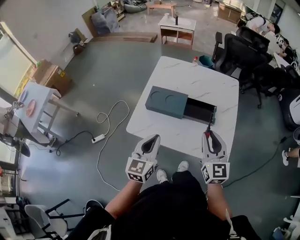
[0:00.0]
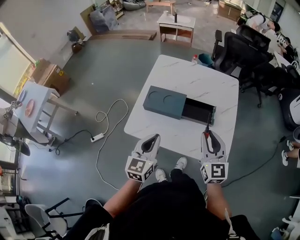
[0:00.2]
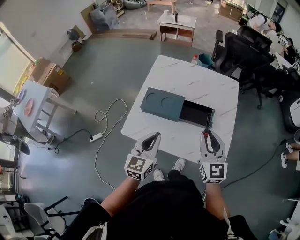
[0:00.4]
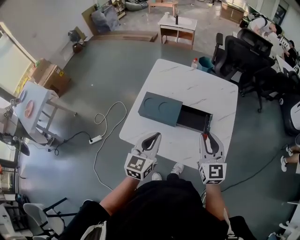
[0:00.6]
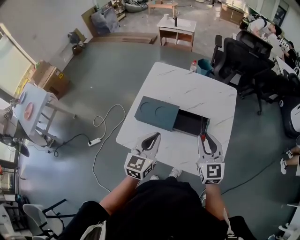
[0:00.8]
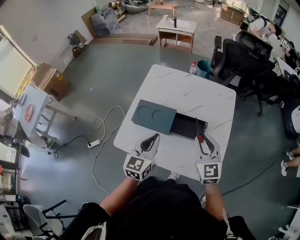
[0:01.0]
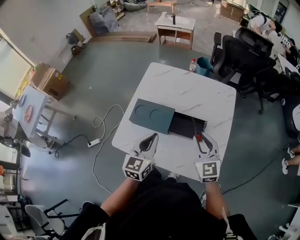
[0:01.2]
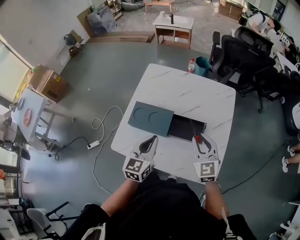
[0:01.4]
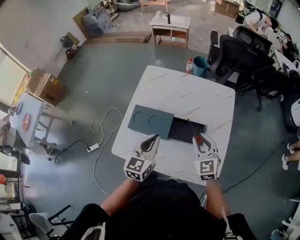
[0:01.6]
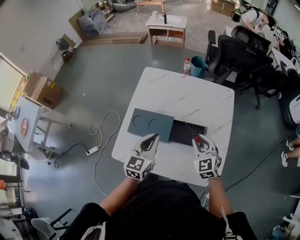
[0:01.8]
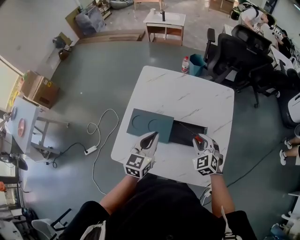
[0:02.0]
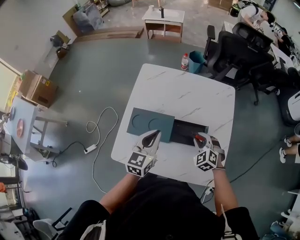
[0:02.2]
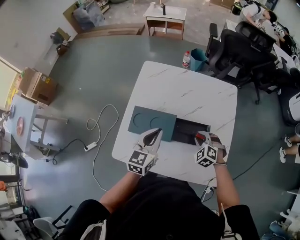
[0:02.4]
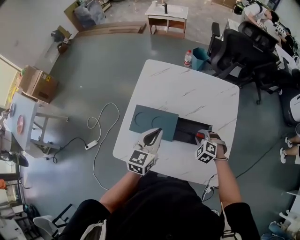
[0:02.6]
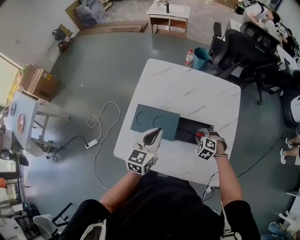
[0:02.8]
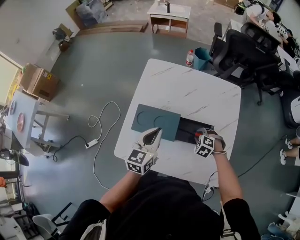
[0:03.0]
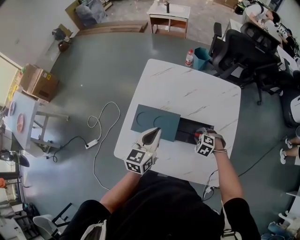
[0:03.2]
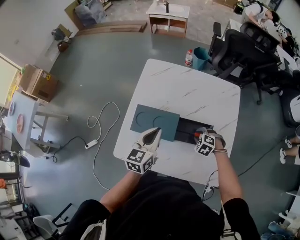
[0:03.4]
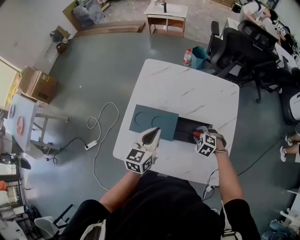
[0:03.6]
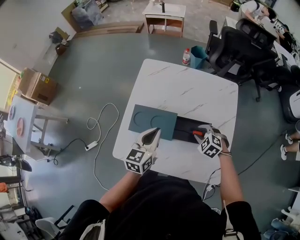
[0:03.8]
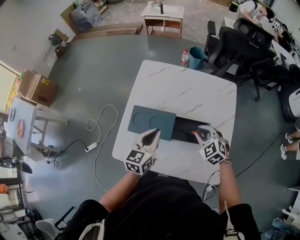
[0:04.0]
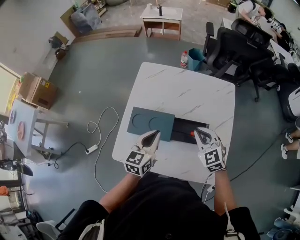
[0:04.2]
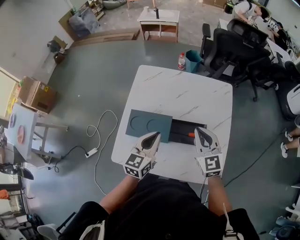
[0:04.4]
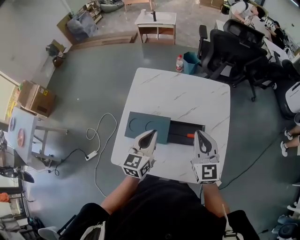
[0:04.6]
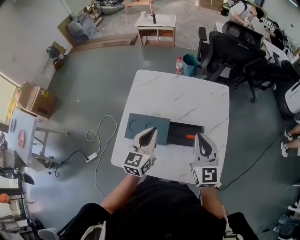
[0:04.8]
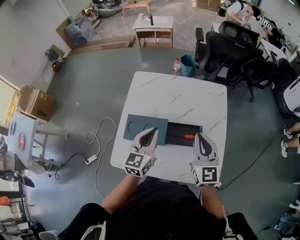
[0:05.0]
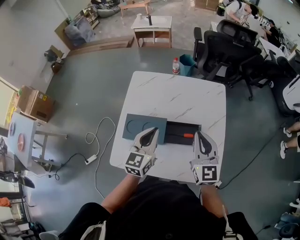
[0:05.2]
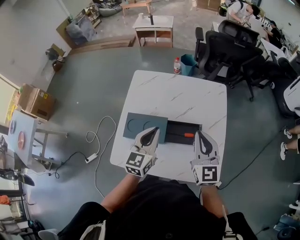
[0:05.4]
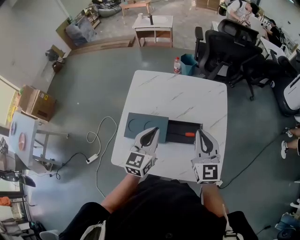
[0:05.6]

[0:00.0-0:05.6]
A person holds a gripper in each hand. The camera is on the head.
0:00.0 to 0:01.4: The right gripper goes roughly 15 cm forward and downward. The left gripper moves forward and to the right, roughly 15 cm.
0:01.4 to 0:02.8: The right gripper is displaced downward by some 20 cm, and points its fingers roughly 50 degrees further downward. Meanwhile the left gripper goes approximately 10 cm forward.
0:02.8 to 0:04.2: The right gripper travels upward by roughly 15 cm, and tips its fingers upward by approximately 40 degrees.
0:04.2 to 0:05.6: The left gripper is displaced upward by approximately 5 cm; the right gripper heads upward, covering roughly 10 cm, and swivels about 40 degrees.

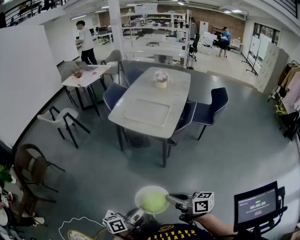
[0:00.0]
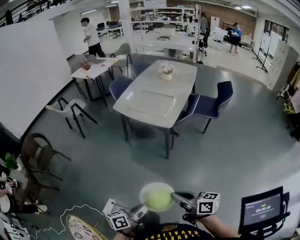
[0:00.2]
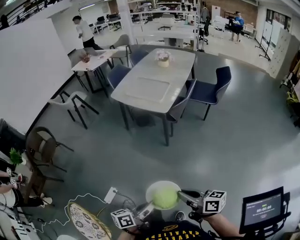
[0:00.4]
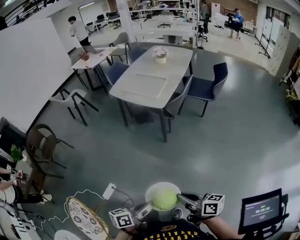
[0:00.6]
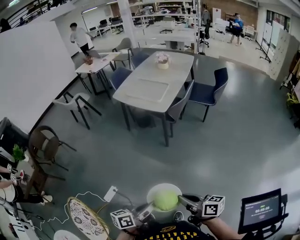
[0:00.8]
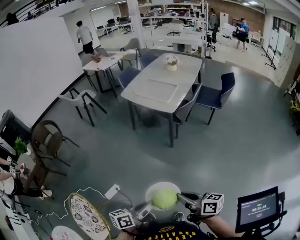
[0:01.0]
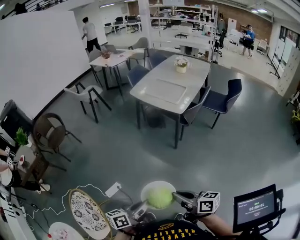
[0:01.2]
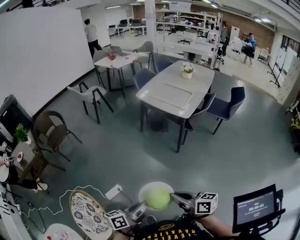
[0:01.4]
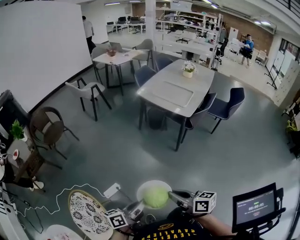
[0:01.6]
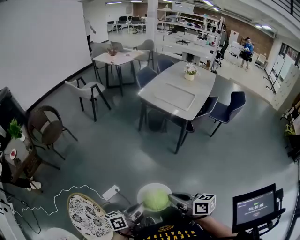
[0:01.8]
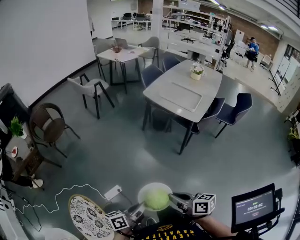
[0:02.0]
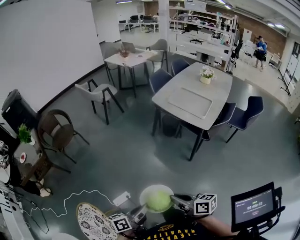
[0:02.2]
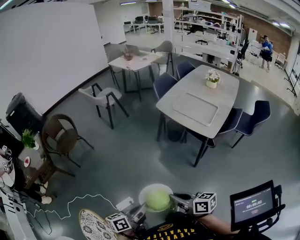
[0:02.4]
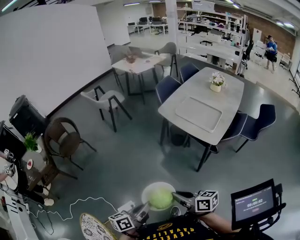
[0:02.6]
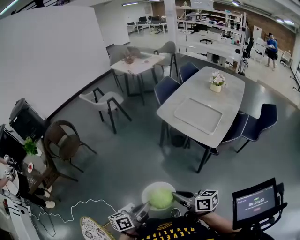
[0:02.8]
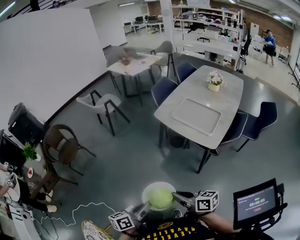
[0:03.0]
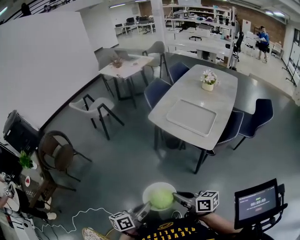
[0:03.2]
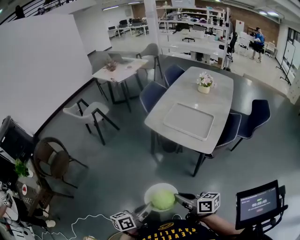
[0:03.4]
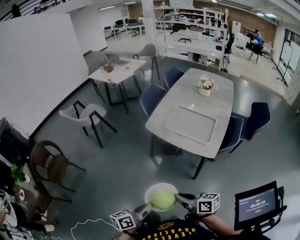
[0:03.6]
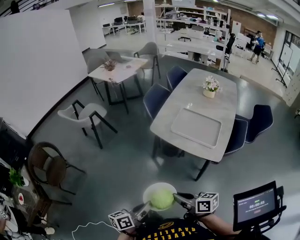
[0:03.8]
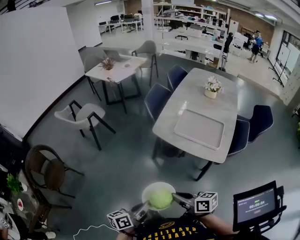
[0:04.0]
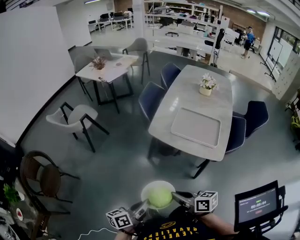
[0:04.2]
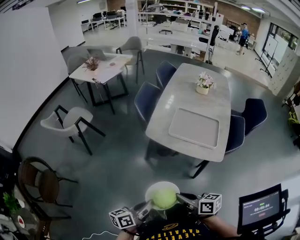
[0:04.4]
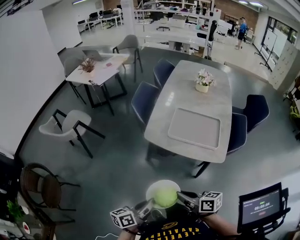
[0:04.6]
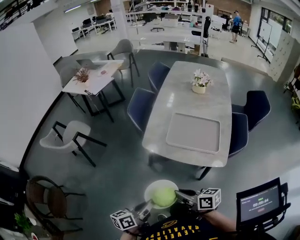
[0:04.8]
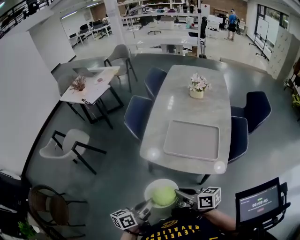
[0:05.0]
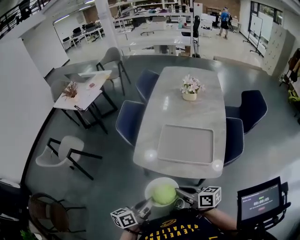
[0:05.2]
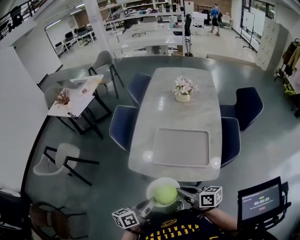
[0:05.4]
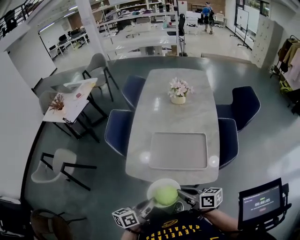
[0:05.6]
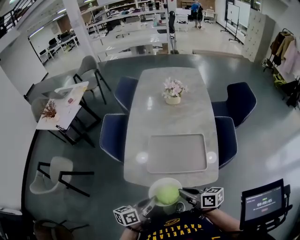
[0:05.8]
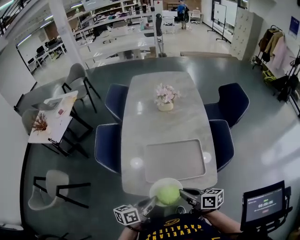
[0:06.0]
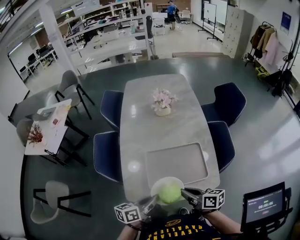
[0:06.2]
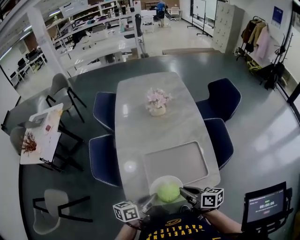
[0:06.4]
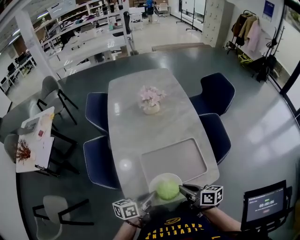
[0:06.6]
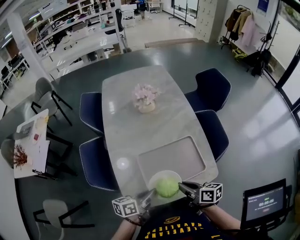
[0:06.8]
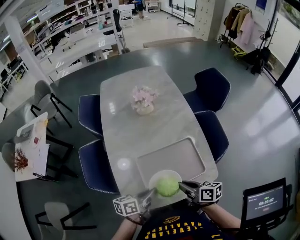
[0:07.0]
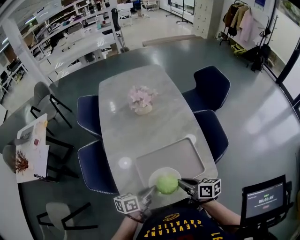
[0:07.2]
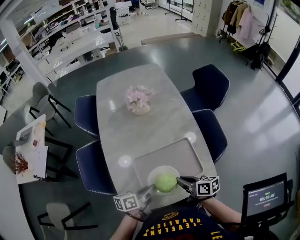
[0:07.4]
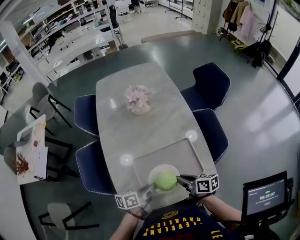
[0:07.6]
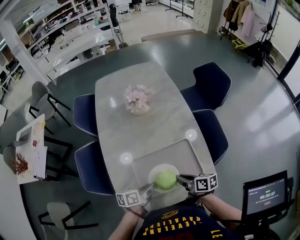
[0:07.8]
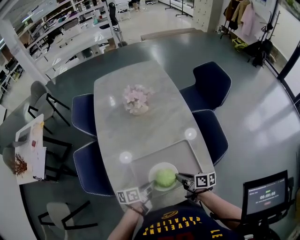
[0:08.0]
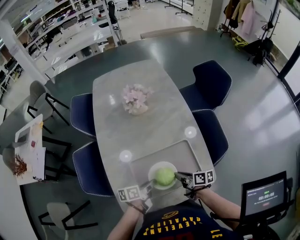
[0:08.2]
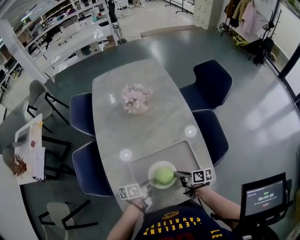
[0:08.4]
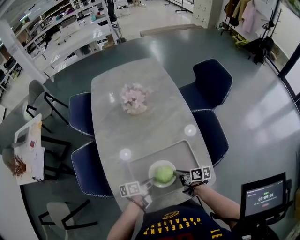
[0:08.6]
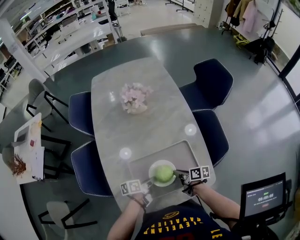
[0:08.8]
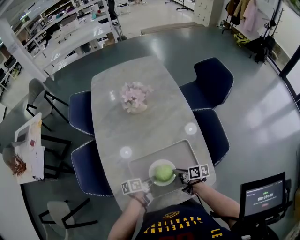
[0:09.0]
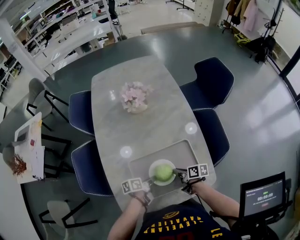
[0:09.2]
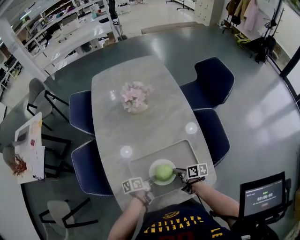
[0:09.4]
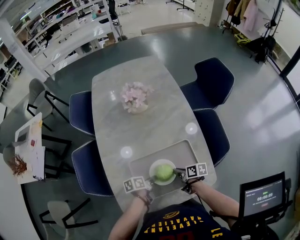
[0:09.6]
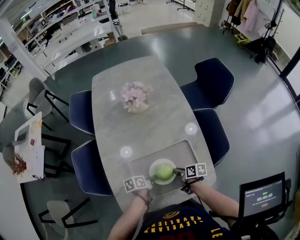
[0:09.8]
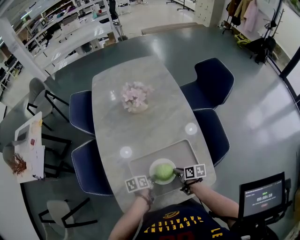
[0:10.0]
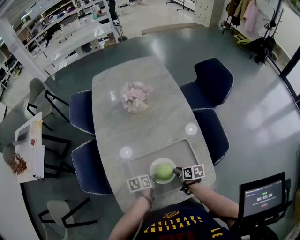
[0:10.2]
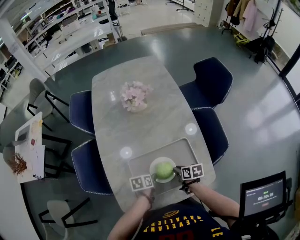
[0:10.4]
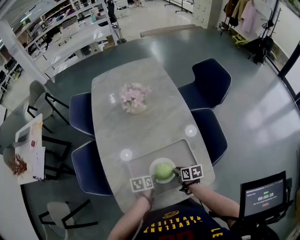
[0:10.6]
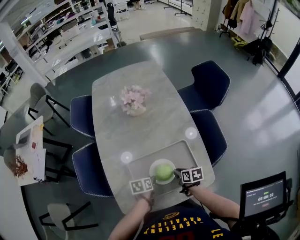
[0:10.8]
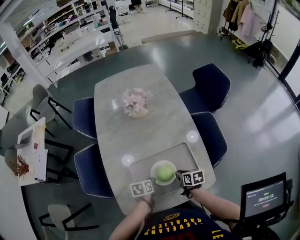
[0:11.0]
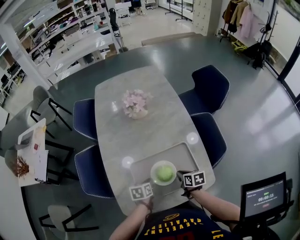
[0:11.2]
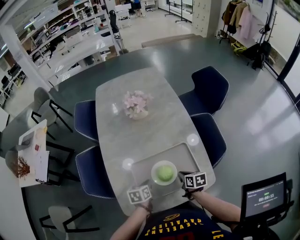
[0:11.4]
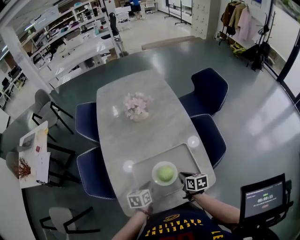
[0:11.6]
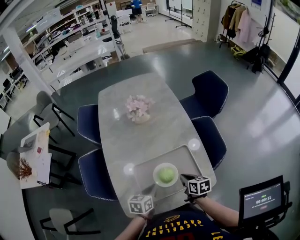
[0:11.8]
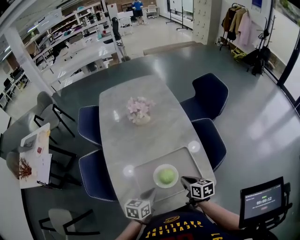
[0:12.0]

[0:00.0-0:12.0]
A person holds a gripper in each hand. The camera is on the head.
0:00.0 to 0:01.6: The two grippers go roughly 20 cm backward and to the left.
0:01.6 to 0:03.0: Both grippers travel together forward, approximately 35 cm.
0:03.0 to 0:04.4: The right gripper goes some 25 cm forward and to the left, and changes its angle by roughly 20 degrees; the left gripper moves forward, some 30 cm, and turns by roughly 20 degrees.
0:04.4 to 0:06.0: The two grippers go approximately 40 cm forward. The right gripper swivels roughly 30 degrees, while the left gripper rotates about 30 degrees.
0:06.0 to 0:07.6: Both grippers travel together forward, roughly 15 cm.
0:07.6 to 0:09.0: Both grippers travel together downward and forward, some 15 cm. The left gripper turns by roughly 20 degrees.
0:09.0 to 0:10.4: The left gripper changes its angle by about 30 degrees. Meanwhile the right gripper swivels approximately 20 degrees.
0:10.4 to 0:12.0: Both grippers move upward and backward, about 15 cm. The left gripper swivels approximately 30 degrees, and closes up.

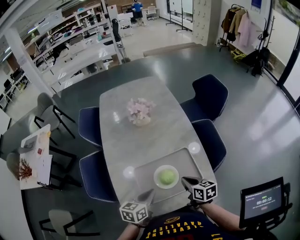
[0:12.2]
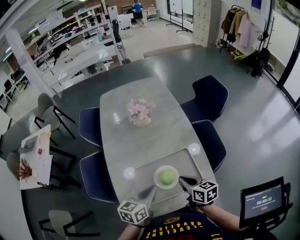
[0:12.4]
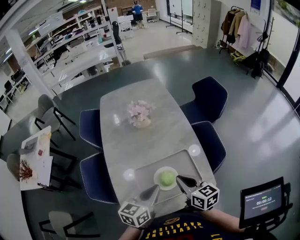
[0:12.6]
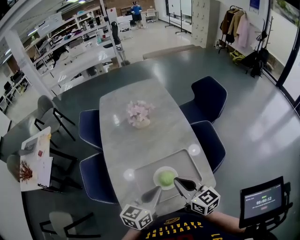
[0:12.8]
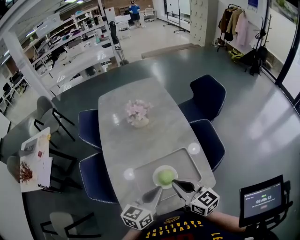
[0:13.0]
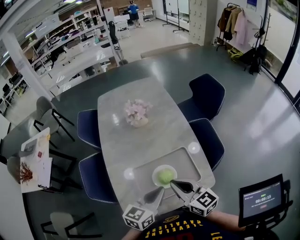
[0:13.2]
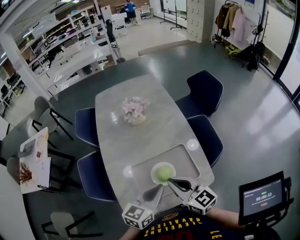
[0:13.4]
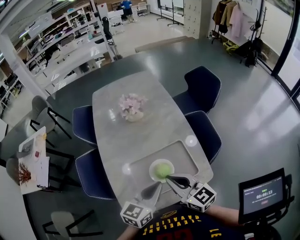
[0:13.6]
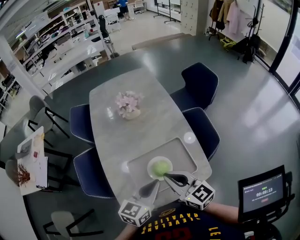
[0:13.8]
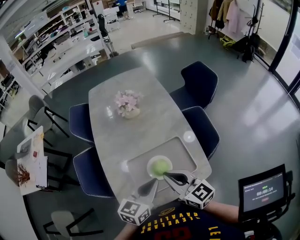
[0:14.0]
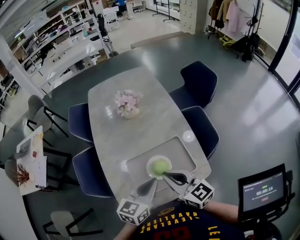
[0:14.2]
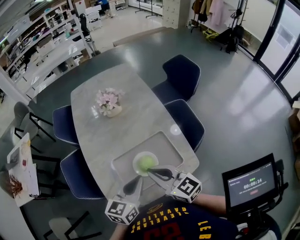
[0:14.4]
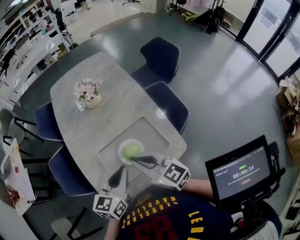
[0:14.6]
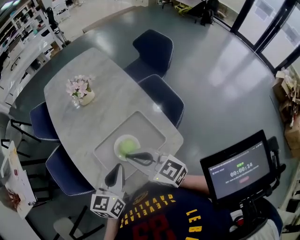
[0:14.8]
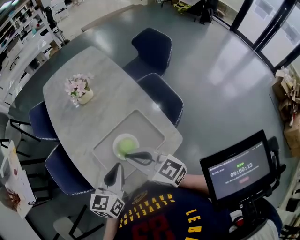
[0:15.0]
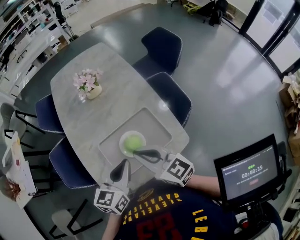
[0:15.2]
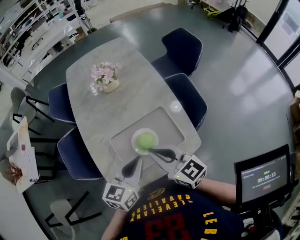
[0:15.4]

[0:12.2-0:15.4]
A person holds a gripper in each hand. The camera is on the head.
0:12.2 to 0:13.8: The left gripper is displaced upward and to the right by roughly 10 cm, and changes its angle by approximately 20 degrees. Meanwhile the right gripper goes roughly 15 cm upward and to the left, and rotates about 40 degrees.
0:13.8 to 0:15.4: There are only small adjustments of the grippers.

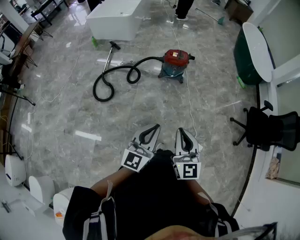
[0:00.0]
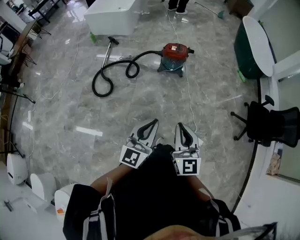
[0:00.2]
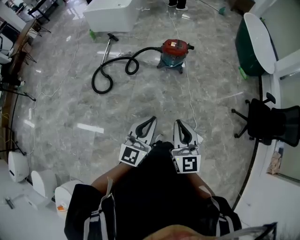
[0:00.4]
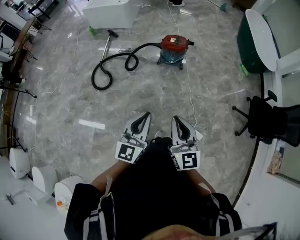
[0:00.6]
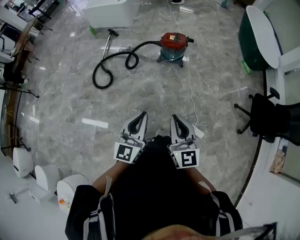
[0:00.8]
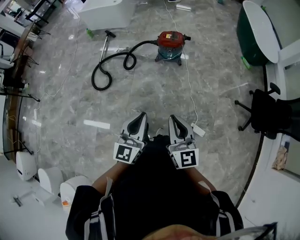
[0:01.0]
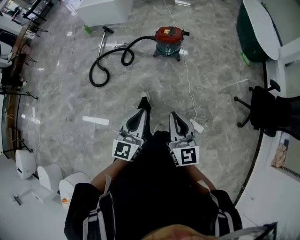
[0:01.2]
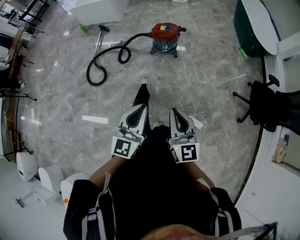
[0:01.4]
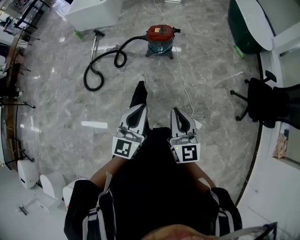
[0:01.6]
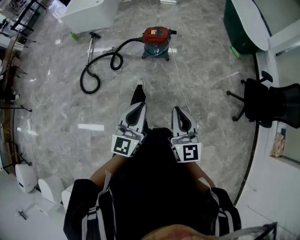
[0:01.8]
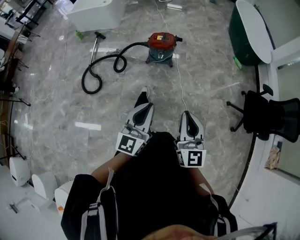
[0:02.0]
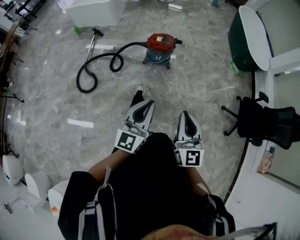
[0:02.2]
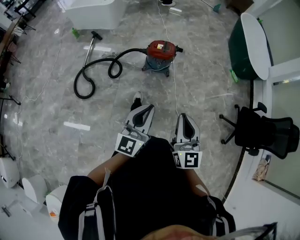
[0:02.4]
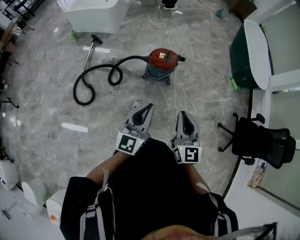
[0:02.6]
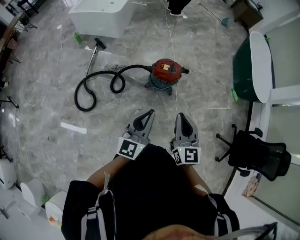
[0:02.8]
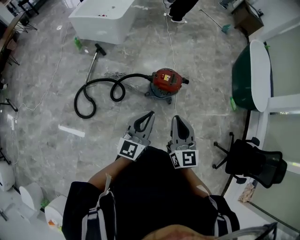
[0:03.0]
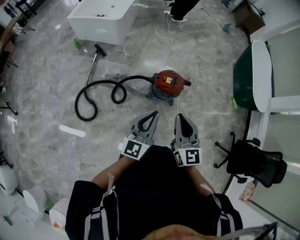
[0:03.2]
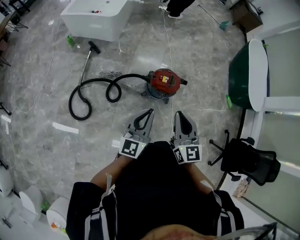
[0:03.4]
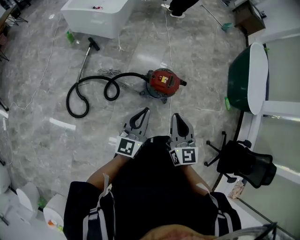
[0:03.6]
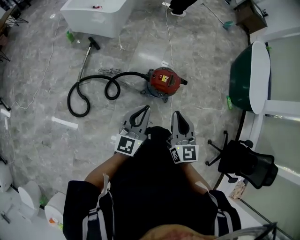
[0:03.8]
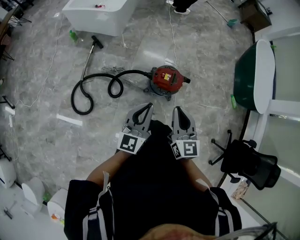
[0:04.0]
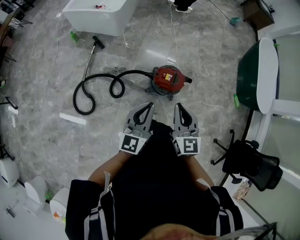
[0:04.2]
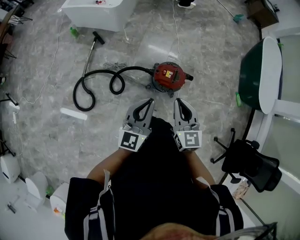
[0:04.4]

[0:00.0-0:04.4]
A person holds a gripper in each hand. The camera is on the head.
0:00.0 to 0:01.4: The grippers both shift to the right by about 10 cm.
0:01.4 to 0:03.0: Both grippers are carried forward, some 50 cm.
0:03.0 to 0:04.4: Both grippers move forward, some 15 cm.
